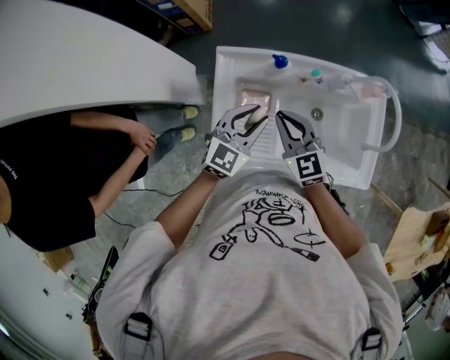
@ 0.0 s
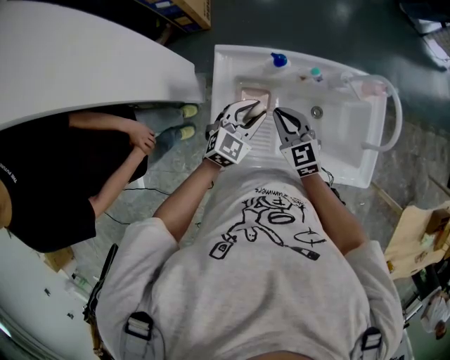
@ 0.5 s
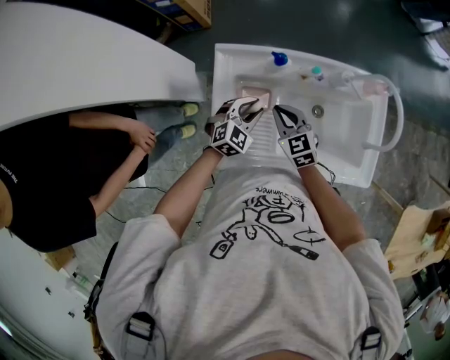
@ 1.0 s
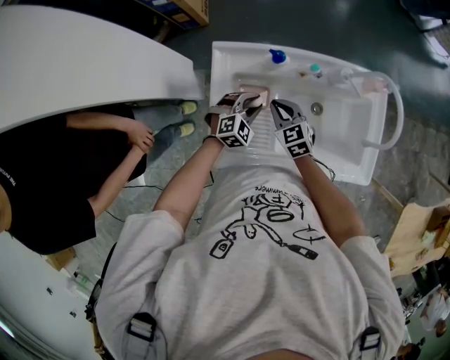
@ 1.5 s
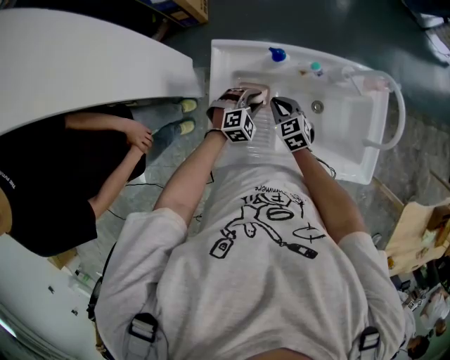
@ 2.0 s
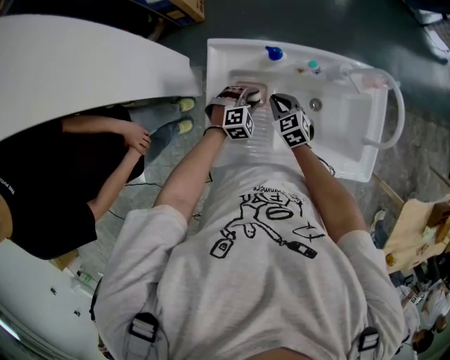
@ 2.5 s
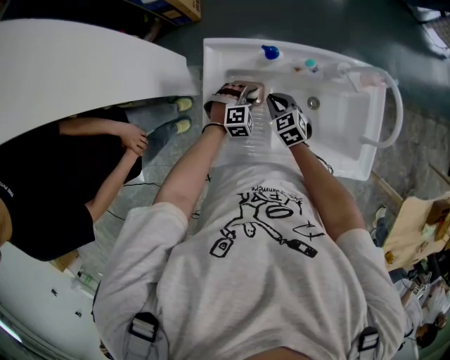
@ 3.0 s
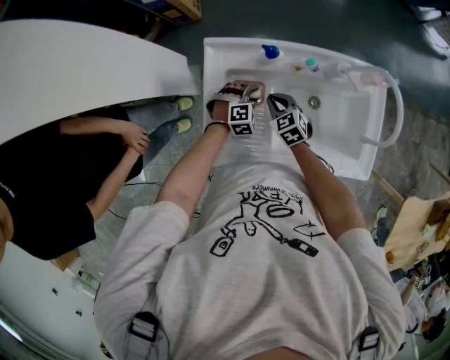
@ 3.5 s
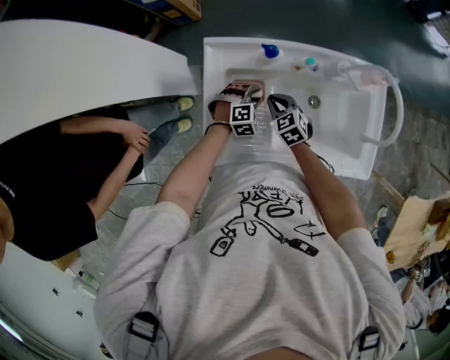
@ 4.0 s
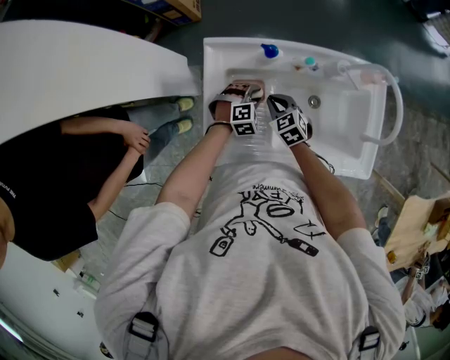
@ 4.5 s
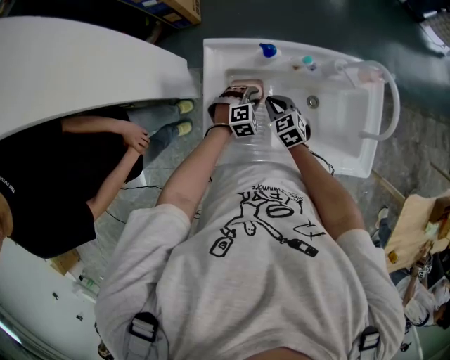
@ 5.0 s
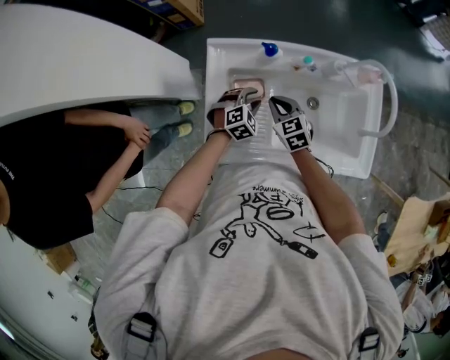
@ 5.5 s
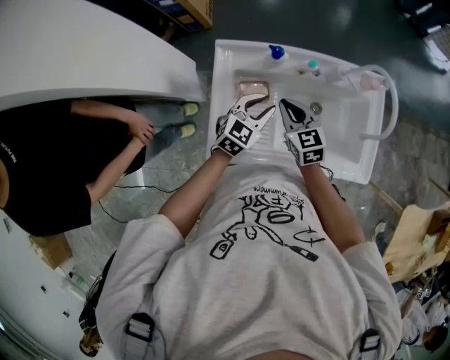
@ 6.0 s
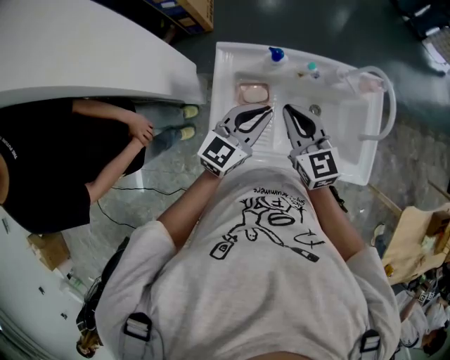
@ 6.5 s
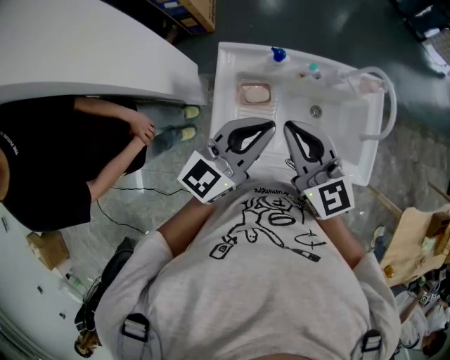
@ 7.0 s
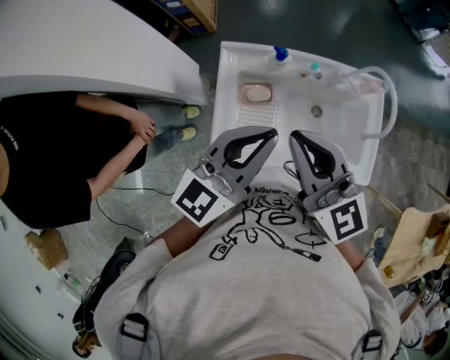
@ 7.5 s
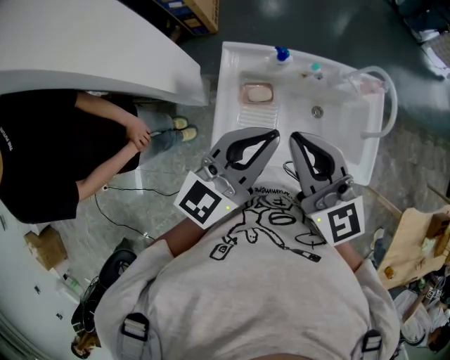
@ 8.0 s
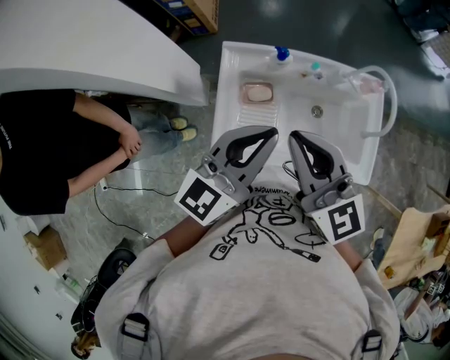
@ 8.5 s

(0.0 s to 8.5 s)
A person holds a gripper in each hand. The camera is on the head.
0.0 s - 2.0 s: Both grippers move downward, roughly 20 cm. The right gripper rotates approximately 20 degrees. Meanwhile the left gripper swivels some 40 degrees.
2.0 s - 4.0 s: The grippers stay close to where they were, moving slightly.
4.0 s - 6.5 s: The two grippers go some 25 cm upward. The left gripper angles its fingers upward, by some 50 degrees, and closes up, while the right gripper angles its fingers upward, by about 30 degrees.
6.5 s - 8.5 s: Both grippers travel together upward and backward, roughly 20 cm.

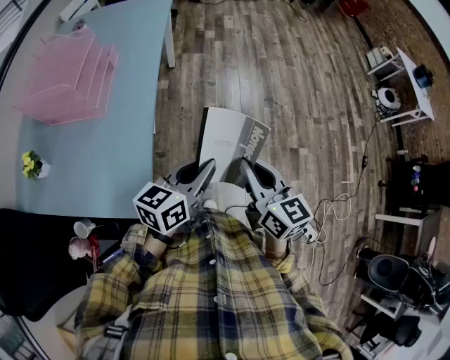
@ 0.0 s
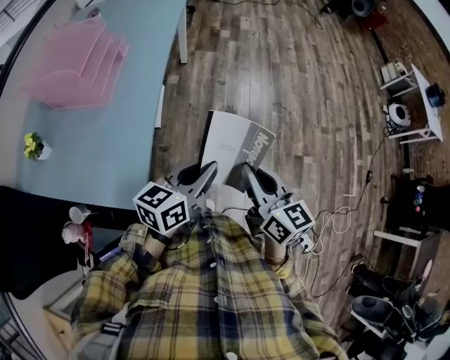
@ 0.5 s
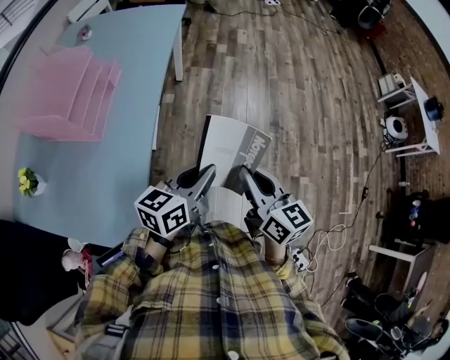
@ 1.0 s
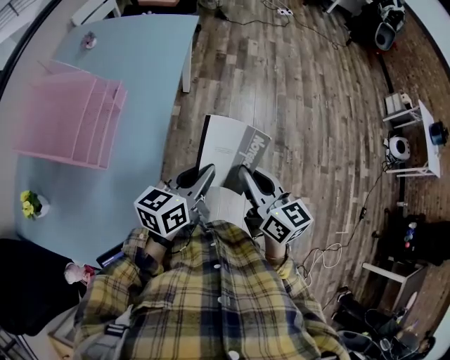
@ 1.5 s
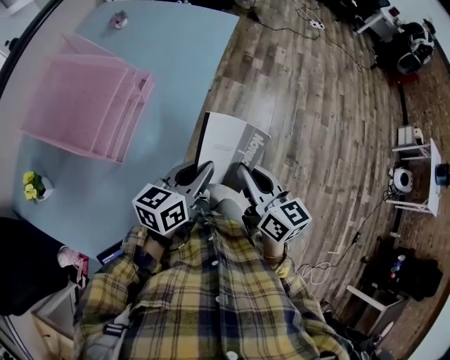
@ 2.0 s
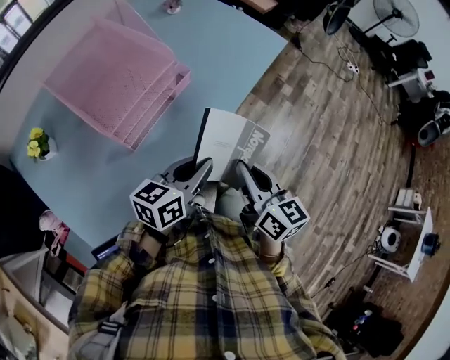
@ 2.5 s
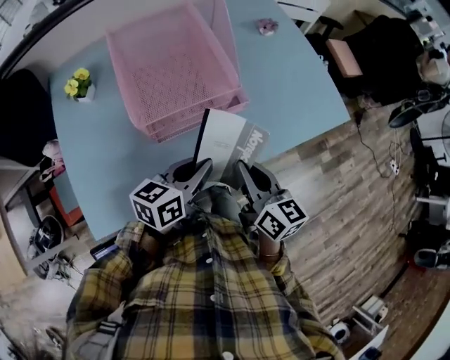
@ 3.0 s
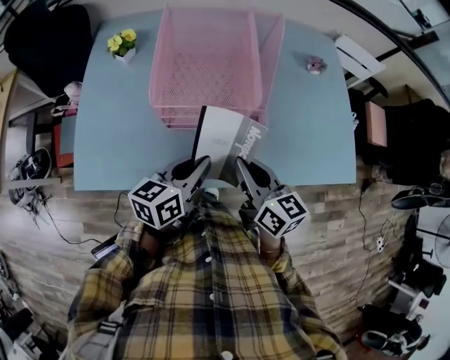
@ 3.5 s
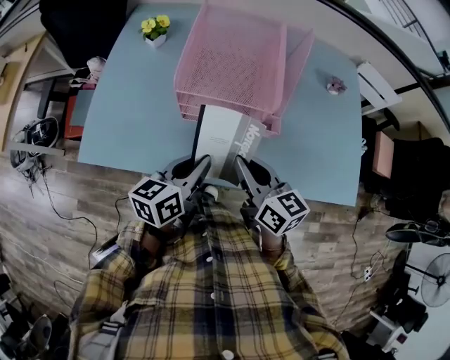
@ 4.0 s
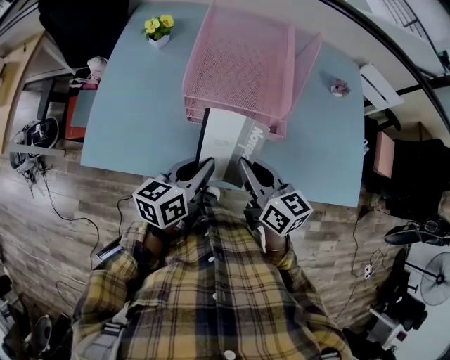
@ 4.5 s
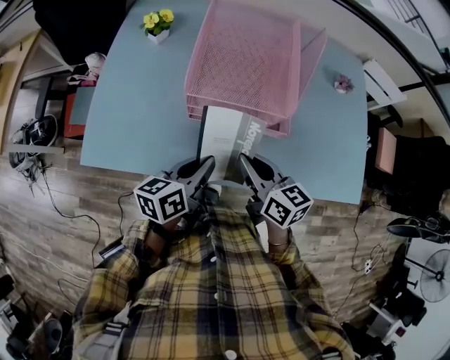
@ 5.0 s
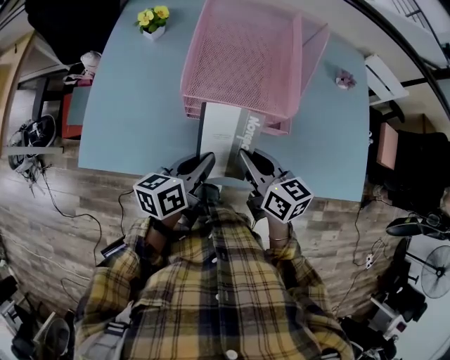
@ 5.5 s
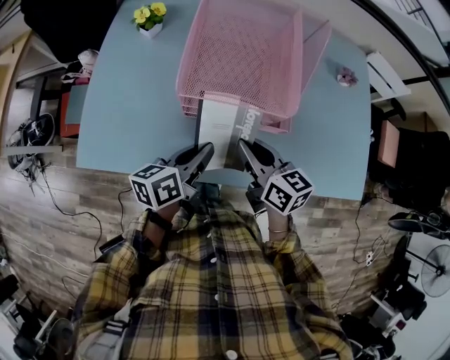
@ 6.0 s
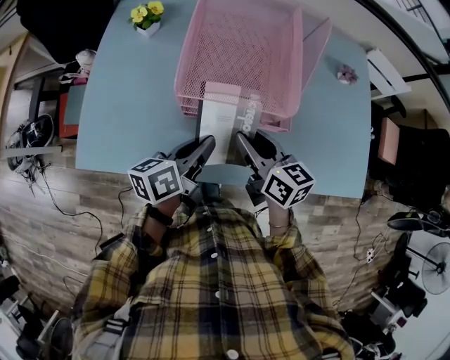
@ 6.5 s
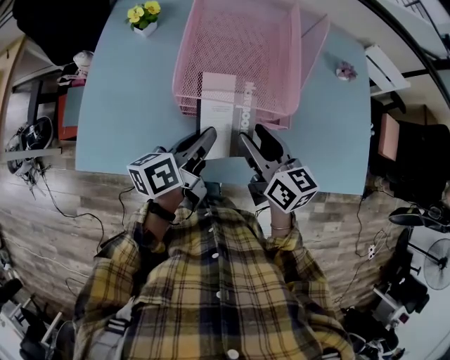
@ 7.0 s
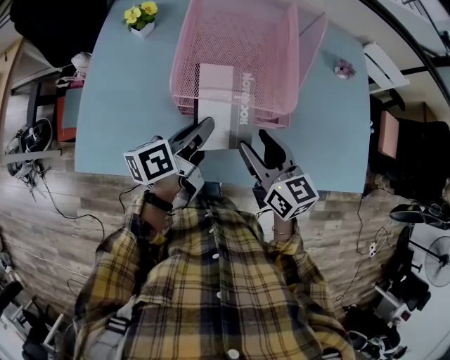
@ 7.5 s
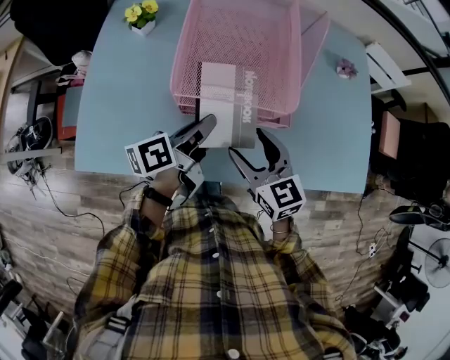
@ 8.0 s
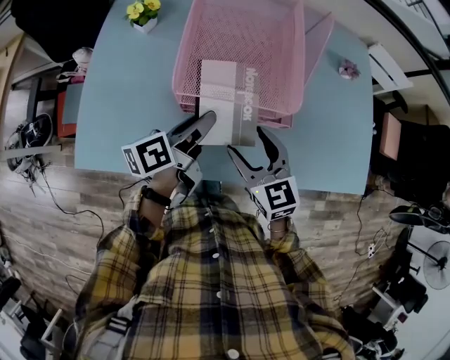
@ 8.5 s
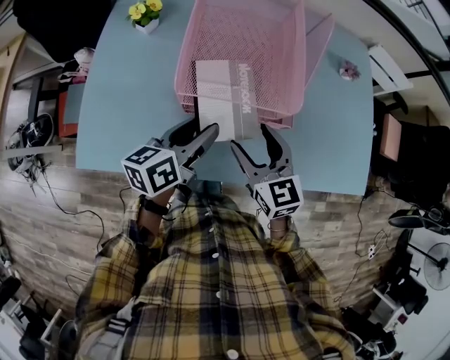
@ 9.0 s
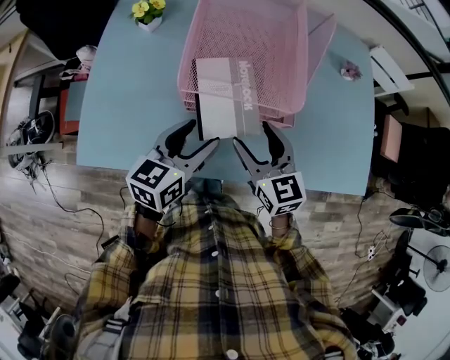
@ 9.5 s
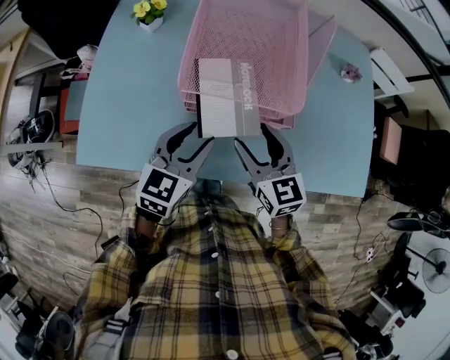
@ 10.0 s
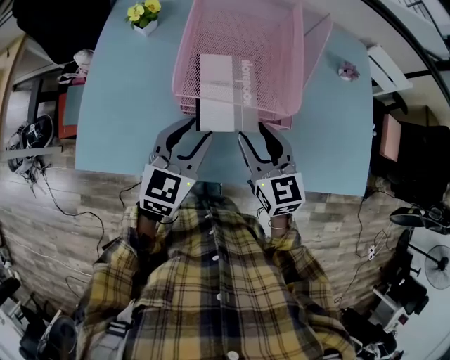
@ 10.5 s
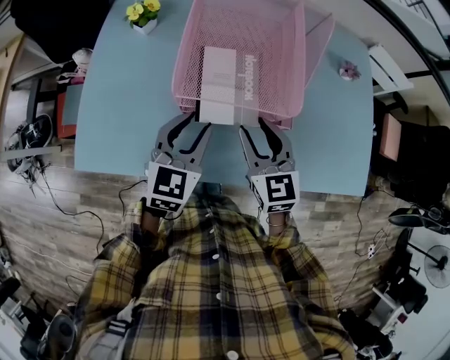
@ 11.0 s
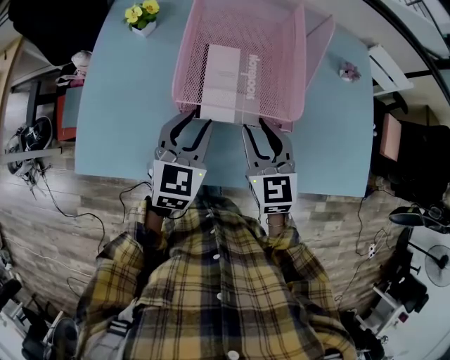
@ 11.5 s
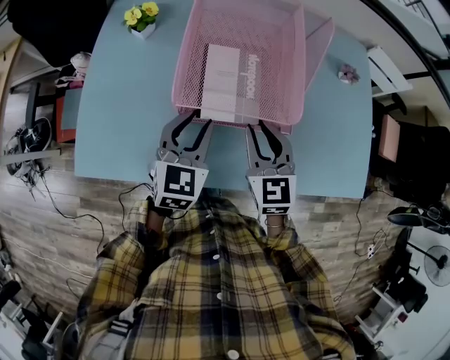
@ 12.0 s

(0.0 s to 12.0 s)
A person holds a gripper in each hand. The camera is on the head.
0.0 s - 2.0 s: The right gripper is displaced forward by approximately 30 cm. Meanwhile the left gripper is displaced forward and to the left by approximately 30 cm.
2.0 s - 4.0 s: The right gripper ends up some 25 cm from where it was, and turns by roughly 80 degrees. Meanwhile the left gripper ends up roughly 15 cm from where it was, and changes its angle by approximately 80 degrees.
4.0 s - 6.0 s: The right gripper moves forward, about 5 cm; the left gripper moves roughly 5 cm.
6.0 s - 8.0 s: The right gripper swivels approximately 30 degrees, and opens its fingers; the left gripper shifts some 5 cm forward.
8.0 s - 10.0 s: The left gripper changes place by approximately 5 cm, rolls clockwise, seen from behind, by roughly 60 degrees, and opens its fingers.
10.0 s - 12.0 s: The left gripper shifts approximately 5 cm forward. Meanwhile the right gripper closes.

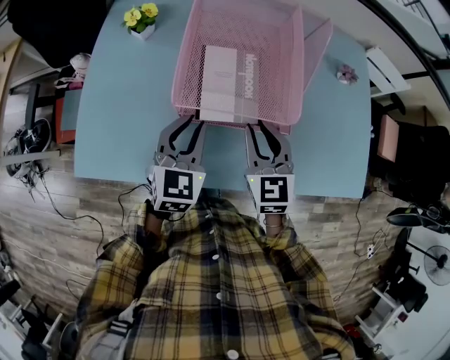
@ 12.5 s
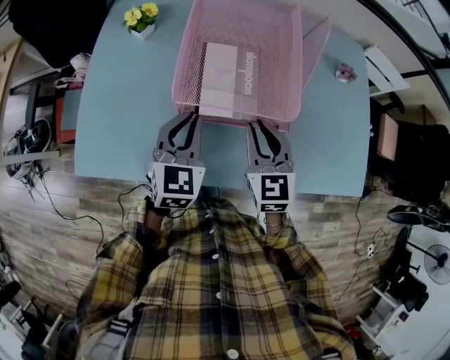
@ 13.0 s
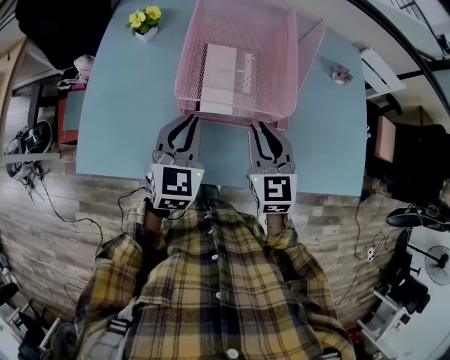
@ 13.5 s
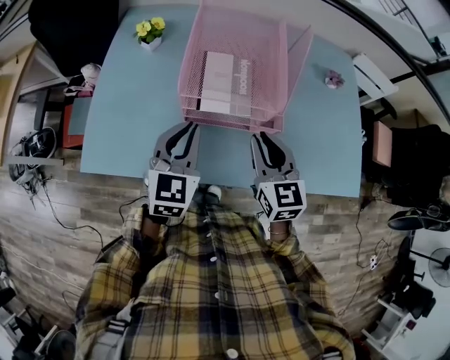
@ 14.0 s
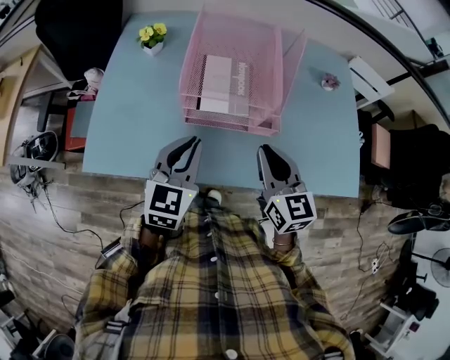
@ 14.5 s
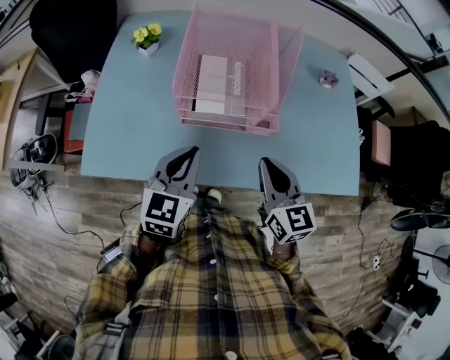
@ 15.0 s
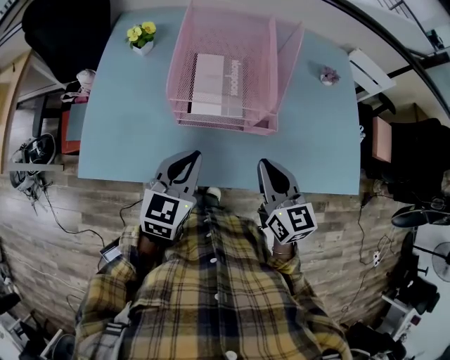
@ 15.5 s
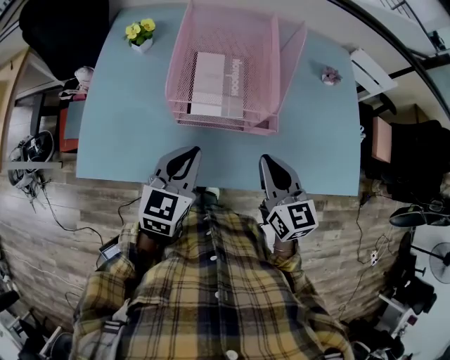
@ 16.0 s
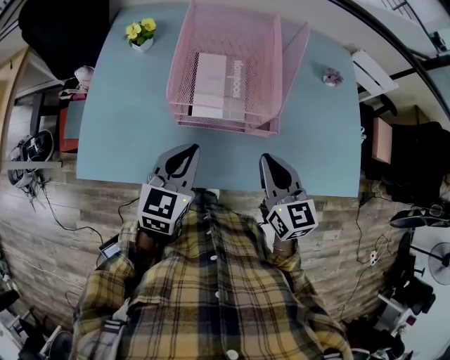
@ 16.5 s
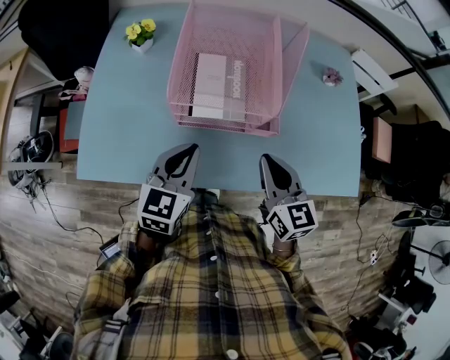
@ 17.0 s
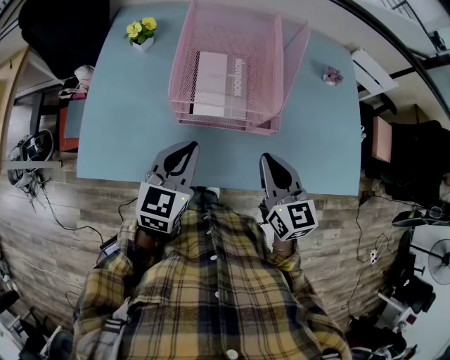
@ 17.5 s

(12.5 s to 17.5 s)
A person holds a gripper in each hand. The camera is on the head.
12.5 s - 15.0 s: The right gripper moves backward and to the right, roughly 15 cm. The left gripper shifts some 10 cm backward.
15.0 s - 17.5 s: The grippers make only small movements.

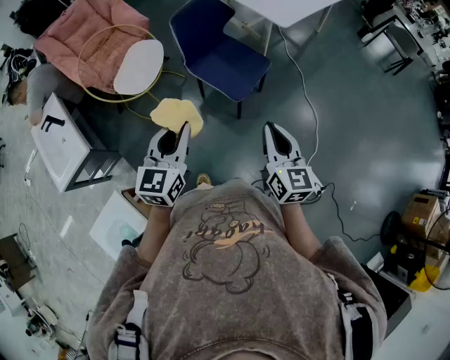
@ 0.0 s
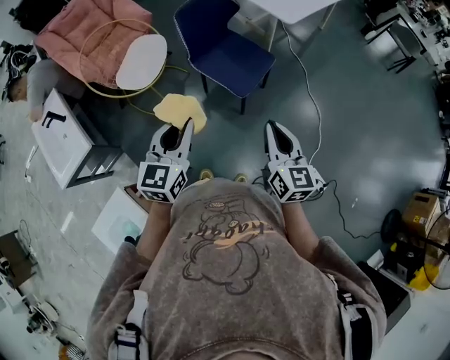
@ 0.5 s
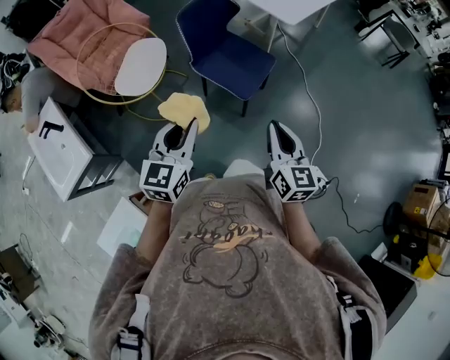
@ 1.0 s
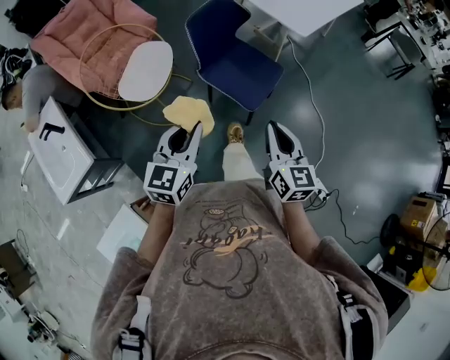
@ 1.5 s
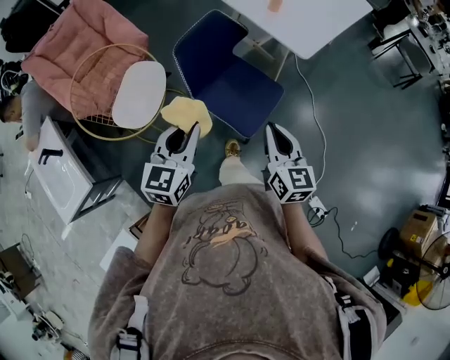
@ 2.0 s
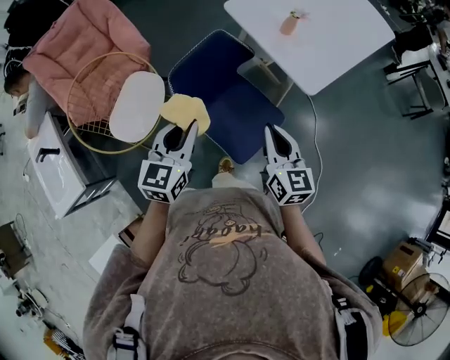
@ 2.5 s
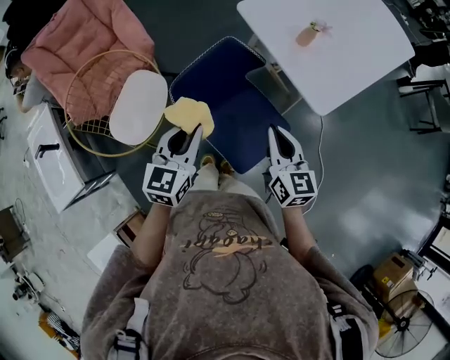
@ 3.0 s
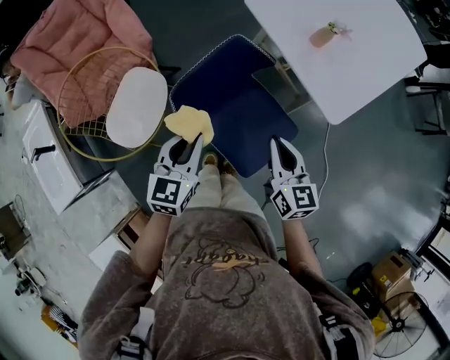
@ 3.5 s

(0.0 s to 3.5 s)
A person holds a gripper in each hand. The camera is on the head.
0.0 s - 2.0 s: Both grippers travel together forward, some 25 cm.
2.0 s - 3.5 s: The grippers both shift forward by roughly 25 cm.
